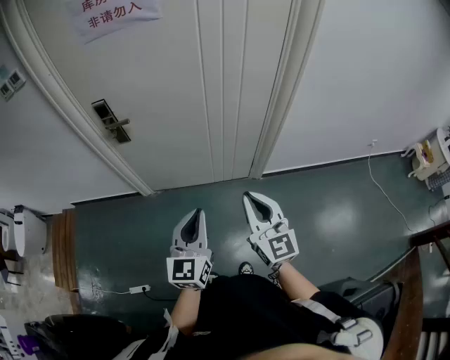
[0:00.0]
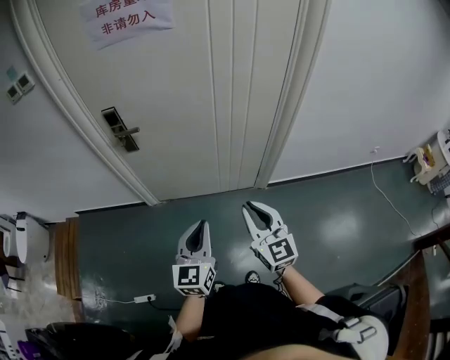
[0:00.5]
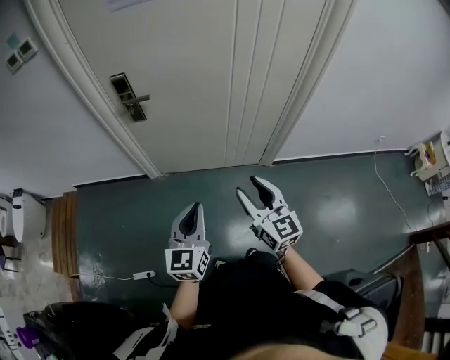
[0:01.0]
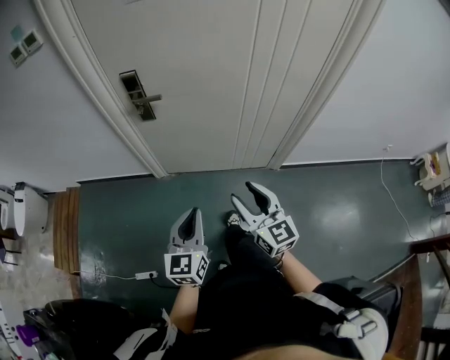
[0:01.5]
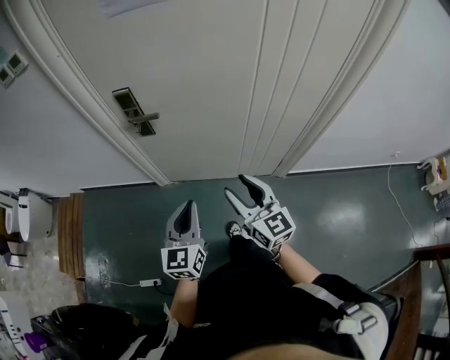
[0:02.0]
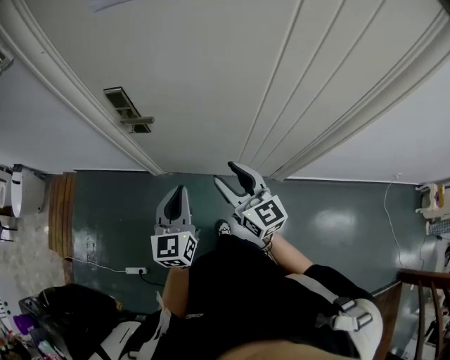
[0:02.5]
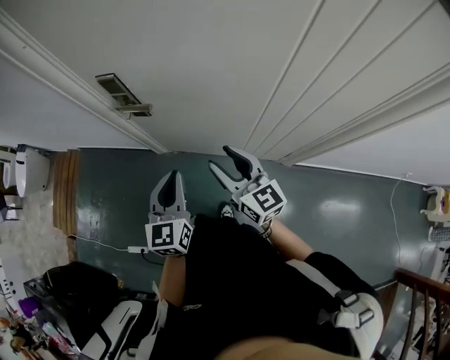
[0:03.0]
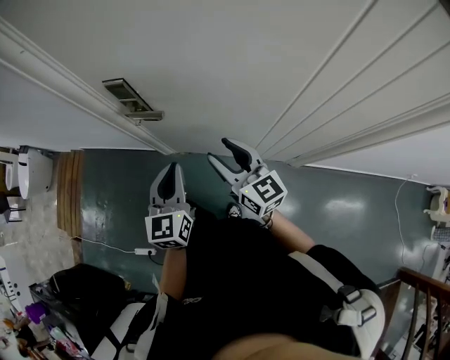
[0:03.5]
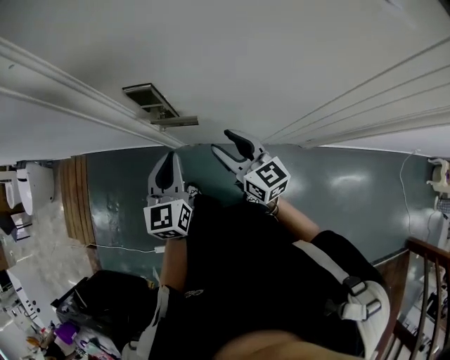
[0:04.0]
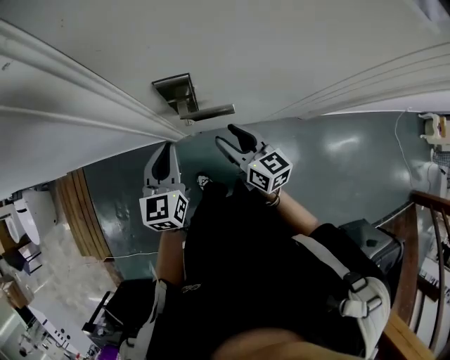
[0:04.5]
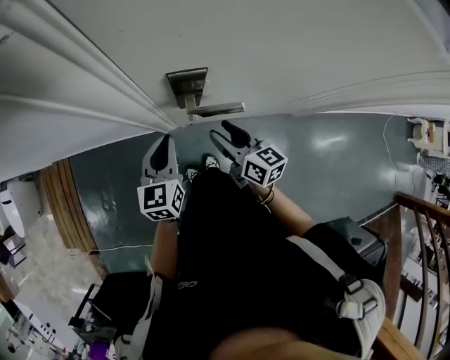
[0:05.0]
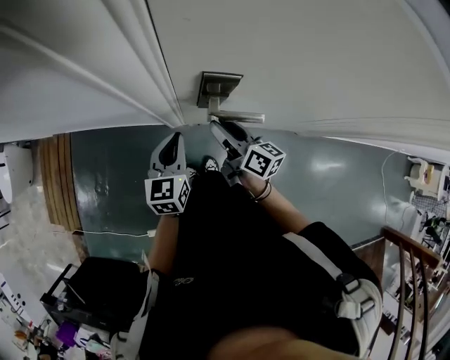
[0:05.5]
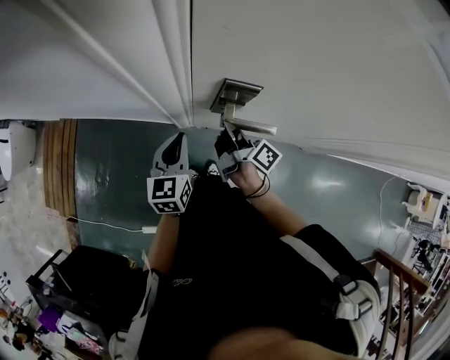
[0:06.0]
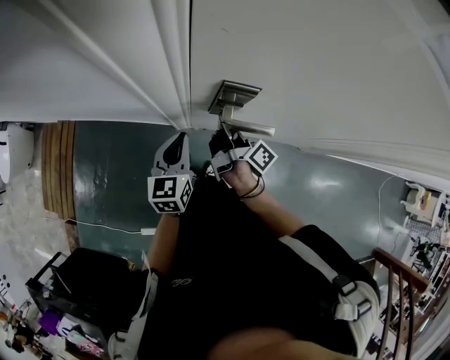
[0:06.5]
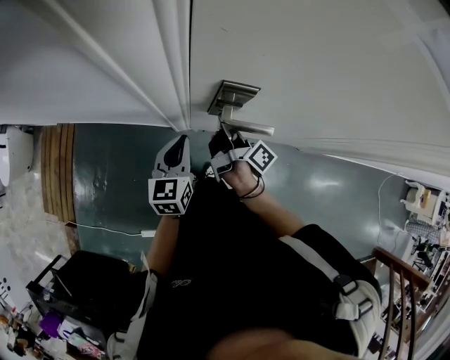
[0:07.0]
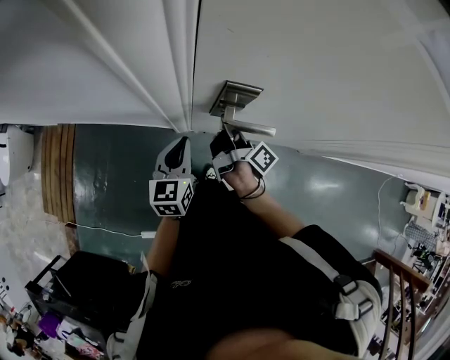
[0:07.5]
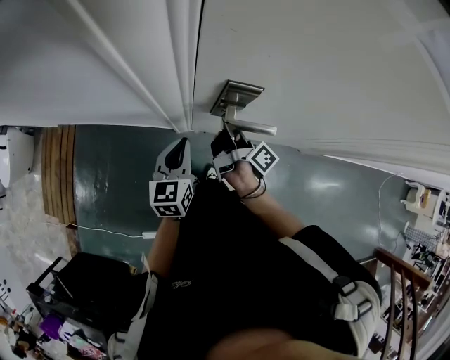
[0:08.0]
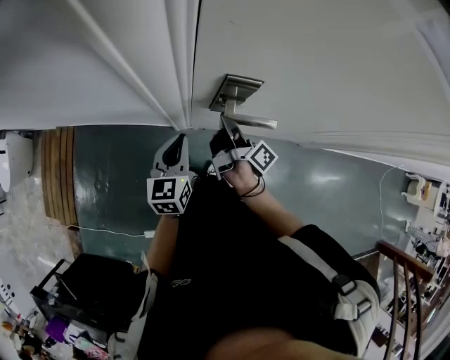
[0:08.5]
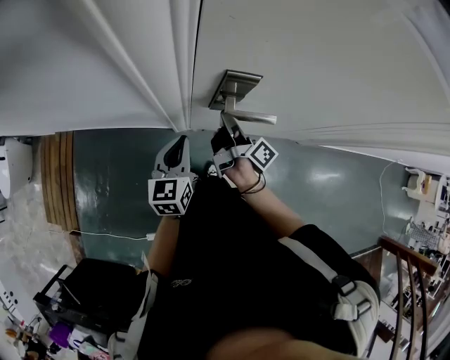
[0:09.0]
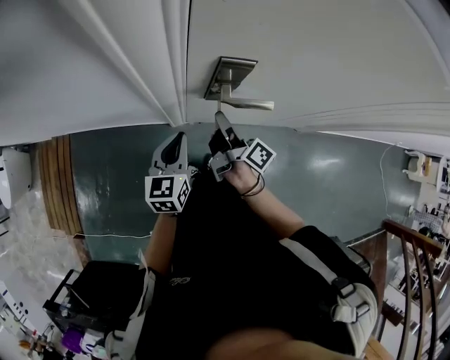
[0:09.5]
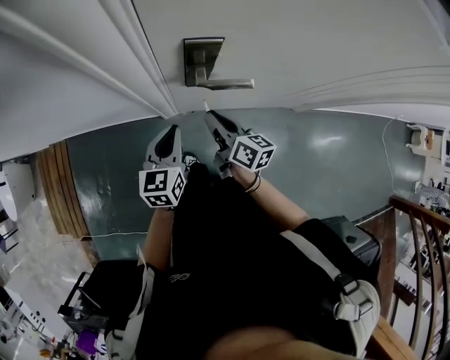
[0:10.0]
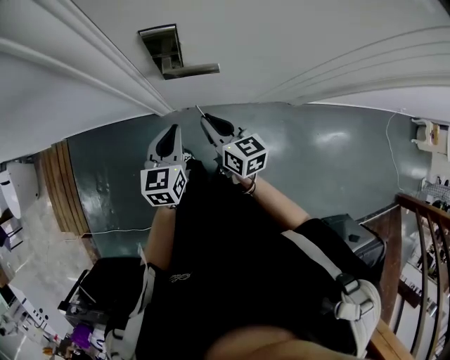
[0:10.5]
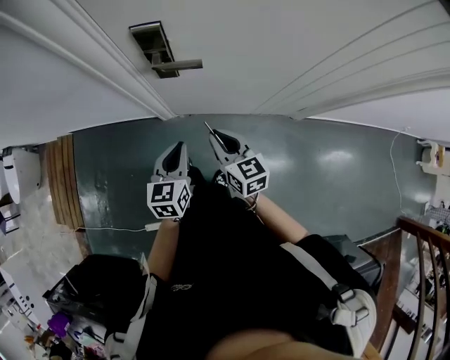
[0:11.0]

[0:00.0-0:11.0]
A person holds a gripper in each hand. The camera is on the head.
0:00.0 to 0:02.0: The right gripper moves forward and to the left, approximately 25 cm, and opens its fingers. The left gripper heads to the left and forward, covering some 20 cm.
0:02.0 to 0:03.5: Both grippers travel together forward, some 20 cm.
0:03.5 to 0:05.5: The grippers both shift to the left, forward and downward by approximately 30 cm. The right gripper changes its angle by approximately 40 degrees.
0:05.5 to 0:07.5: The right gripper swivels roughly 40 degrees, and closes its fingers.
0:07.5 to 0:09.0: There are only small adjustments of the grippers.
0:09.0 to 0:11.0: Both grippers move backward and to the right, roughly 20 cm. The right gripper rolls counterclockwise, seen from behind, by some 70 degrees.

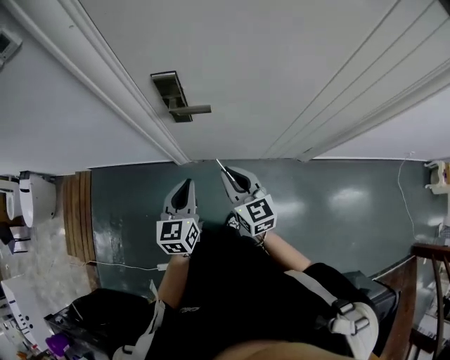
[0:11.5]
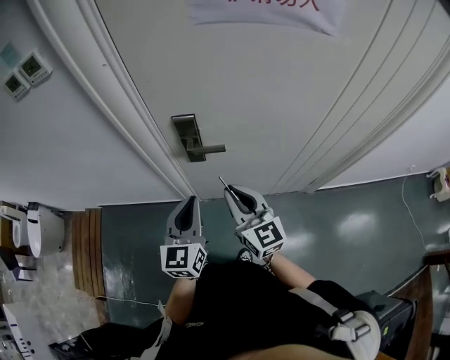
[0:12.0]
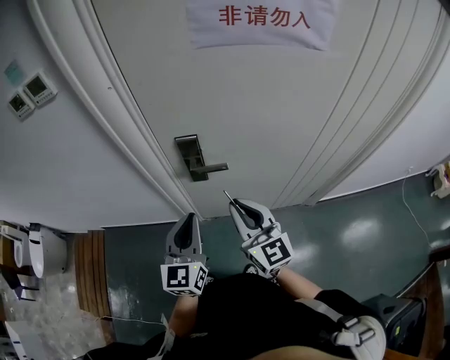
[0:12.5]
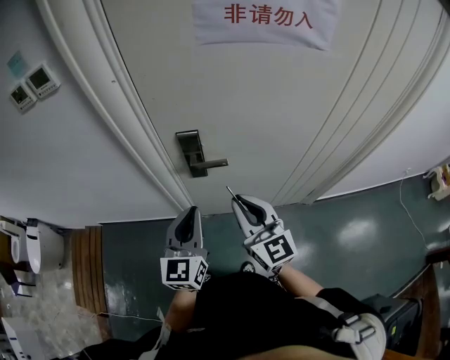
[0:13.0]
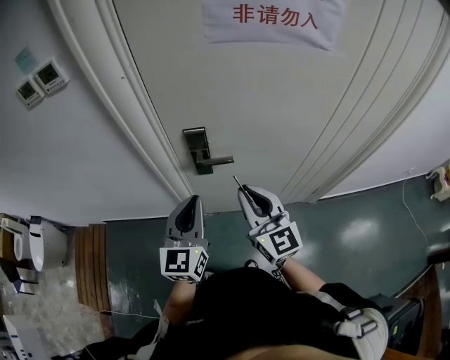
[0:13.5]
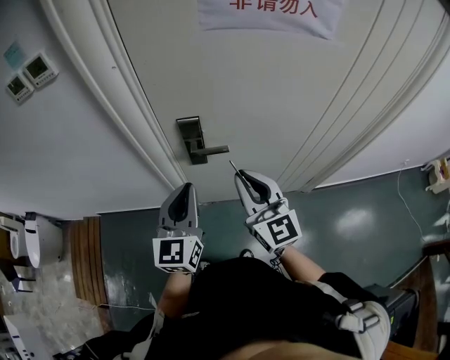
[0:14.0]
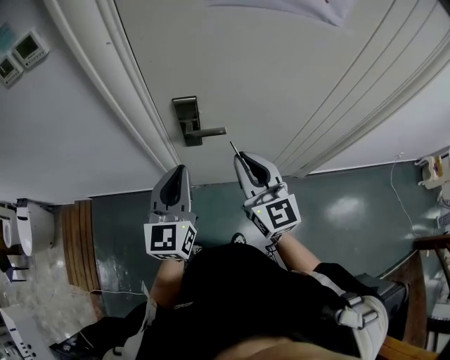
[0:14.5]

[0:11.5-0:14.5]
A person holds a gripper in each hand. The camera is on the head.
0:11.5 to 0:13.0: The grippers both shift upward by about 15 cm.
0:13.0 to 0:14.5: The grippers move only a little.

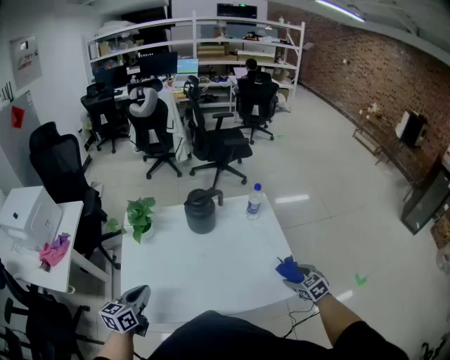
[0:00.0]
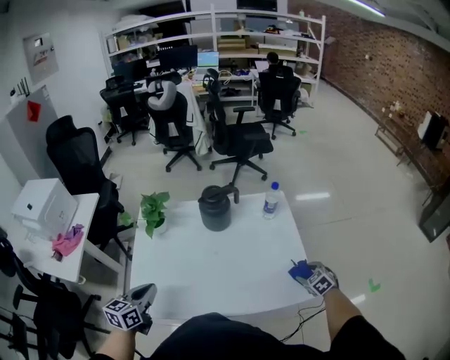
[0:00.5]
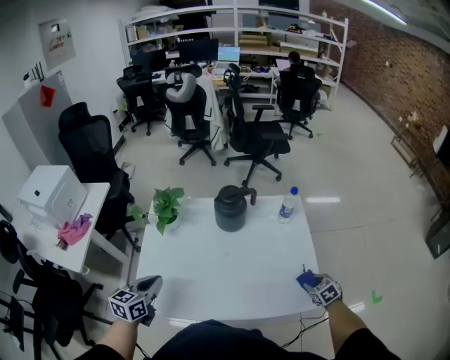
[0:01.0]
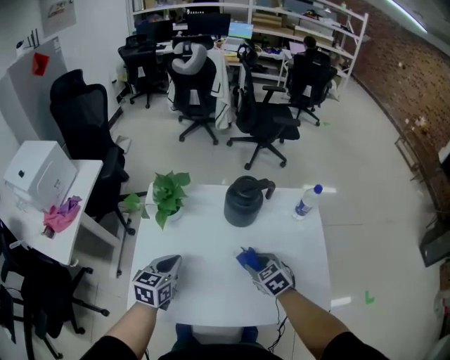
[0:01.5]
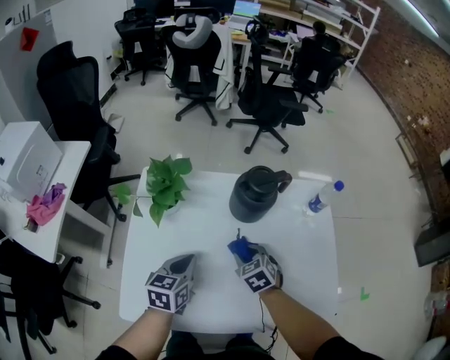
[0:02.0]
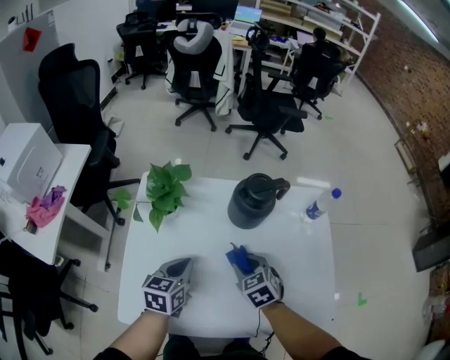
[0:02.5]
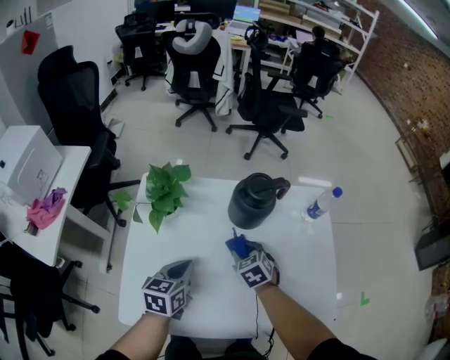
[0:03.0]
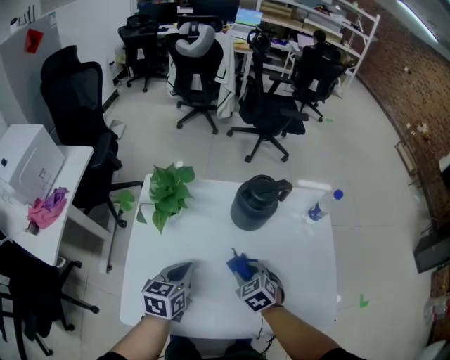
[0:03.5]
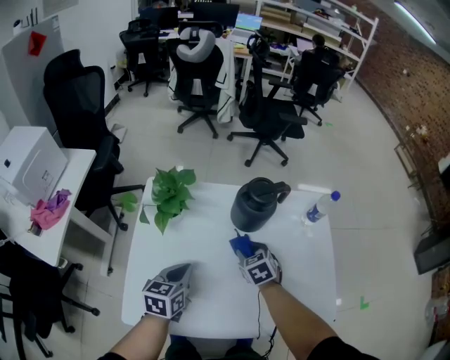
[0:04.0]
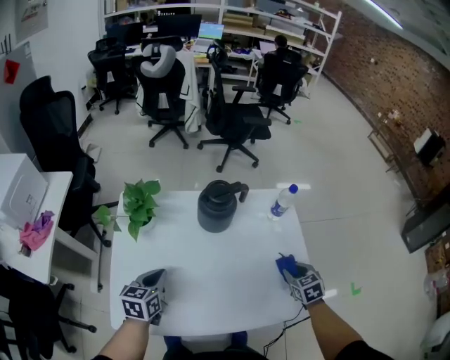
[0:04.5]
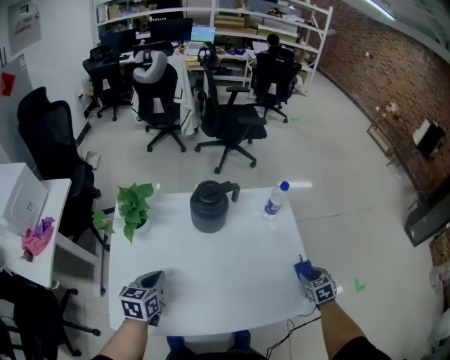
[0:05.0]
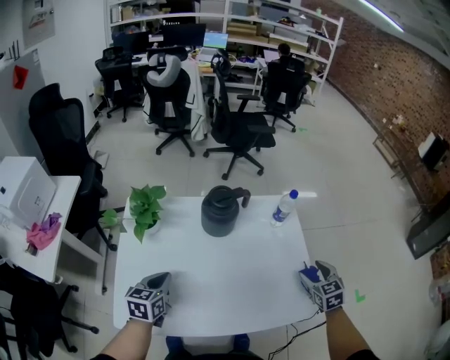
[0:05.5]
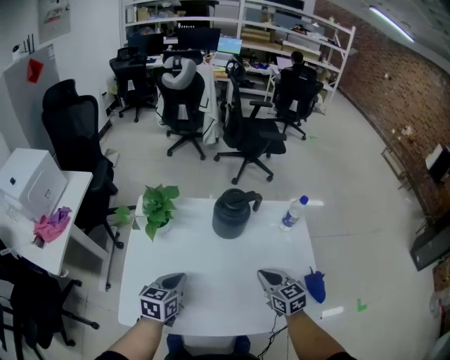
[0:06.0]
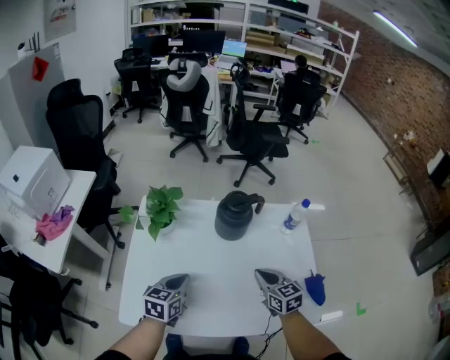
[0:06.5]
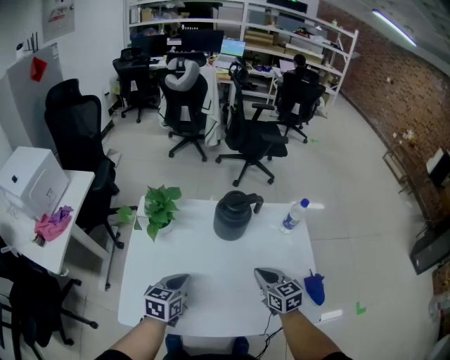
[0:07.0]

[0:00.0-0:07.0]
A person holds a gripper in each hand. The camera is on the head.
0:00.0 to 0:02.0: The left gripper shifts some 20 cm forward and downward. Meanwhile the right gripper is displaced to the left and forward by roughly 40 cm, and closes up.
0:02.0 to 0:03.5: The grippers make only small movements.
0:03.5 to 0:05.0: The right gripper moves to the right, about 40 cm, and turns by approximately 30 degrees.
0:05.0 to 0:07.0: The right gripper is displaced to the left by about 30 cm, rotates approximately 40 degrees, and closes up.

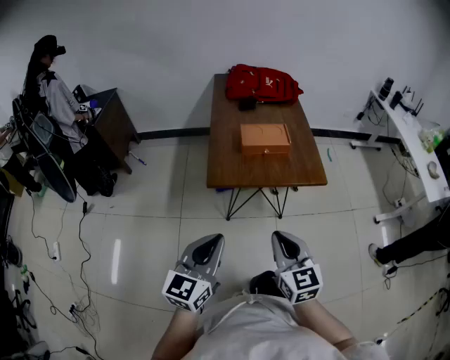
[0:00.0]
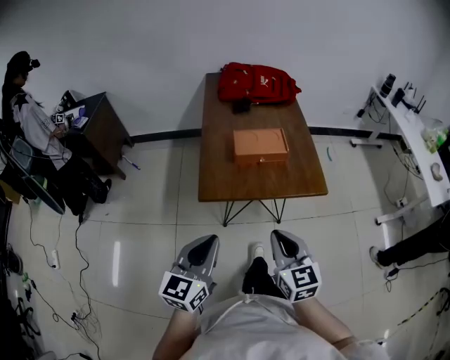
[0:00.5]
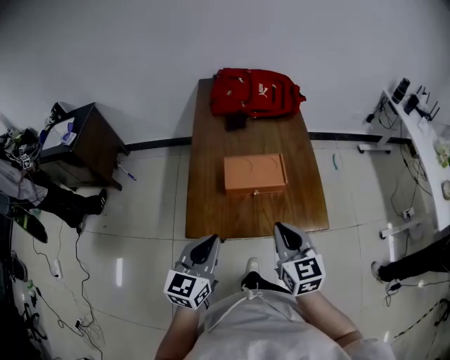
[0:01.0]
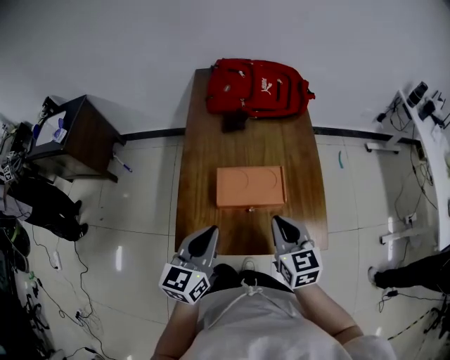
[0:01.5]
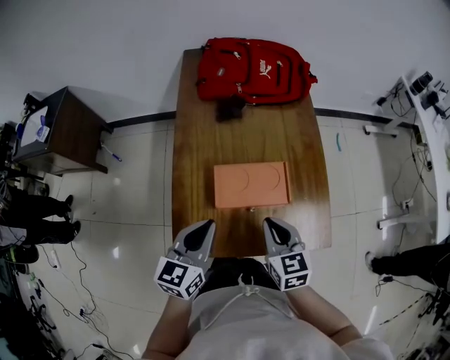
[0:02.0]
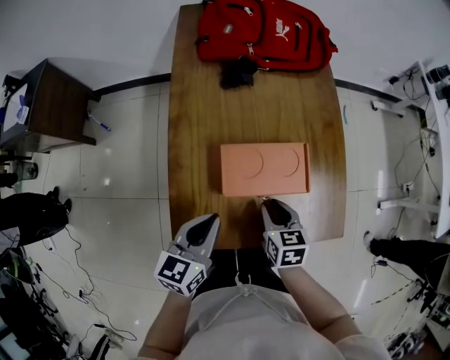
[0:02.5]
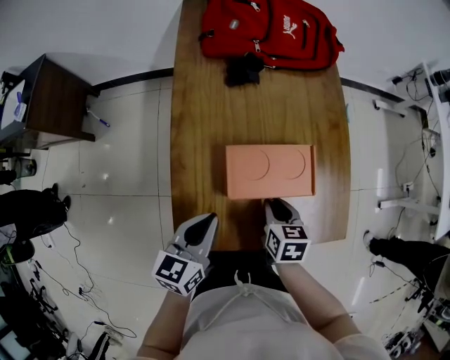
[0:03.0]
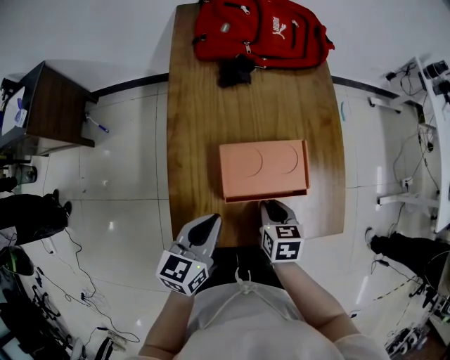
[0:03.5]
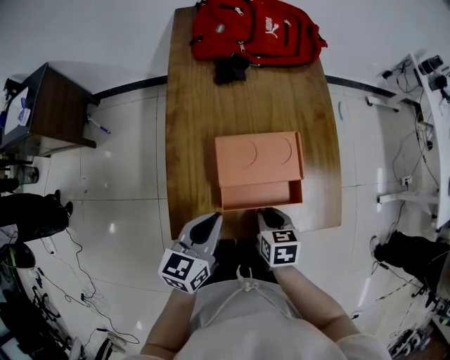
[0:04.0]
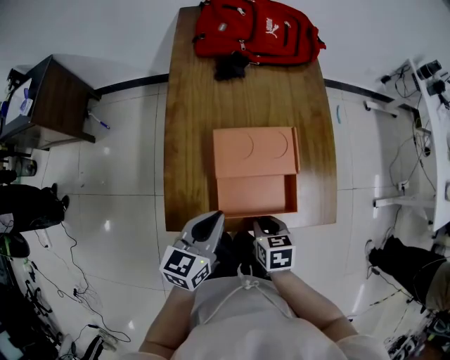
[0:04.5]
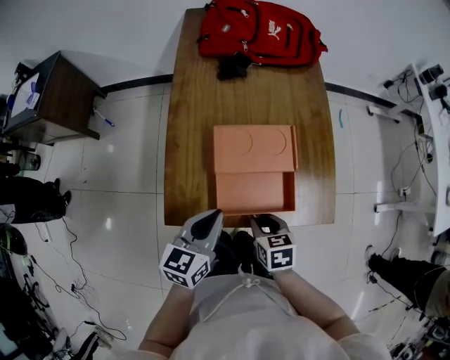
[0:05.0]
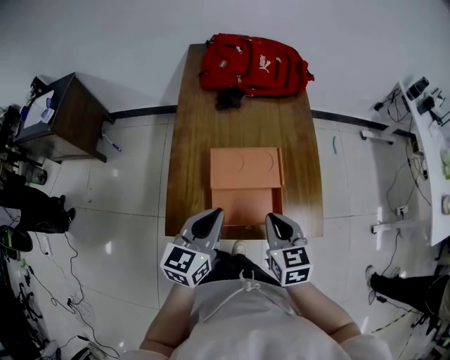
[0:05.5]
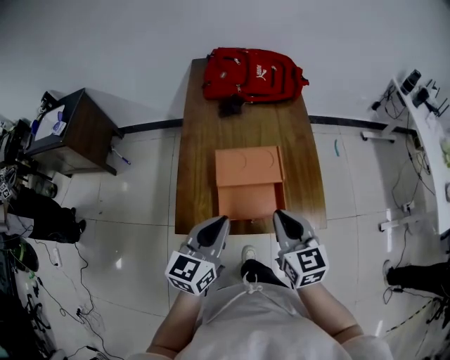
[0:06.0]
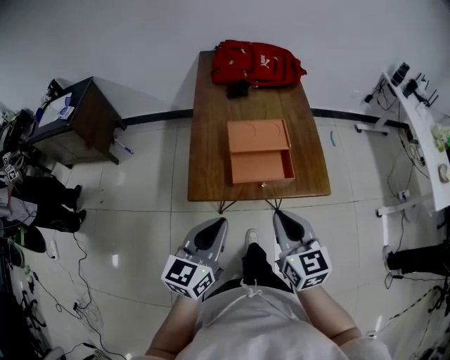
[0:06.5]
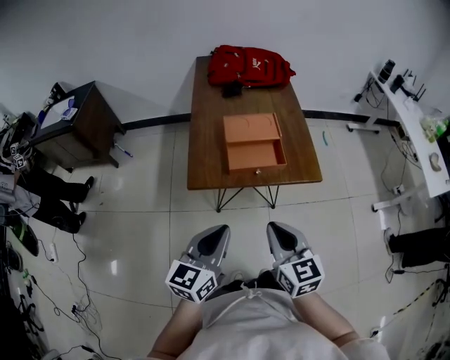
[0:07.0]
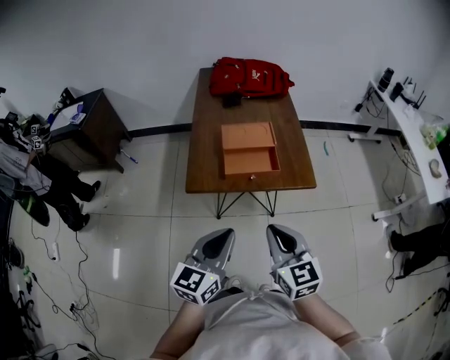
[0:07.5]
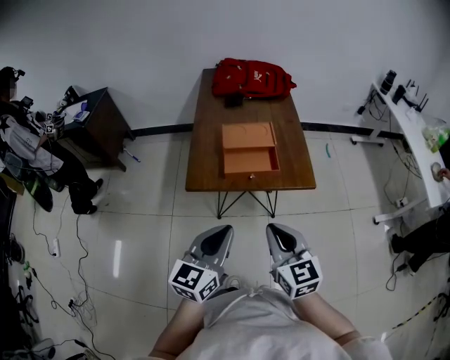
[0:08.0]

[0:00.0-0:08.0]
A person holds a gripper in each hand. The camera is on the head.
0:00.0 to 0:02.0: The pair of grippers is taken forward, some 40 cm.
0:02.0 to 0:04.0: The left gripper shifts about 5 cm downward; the right gripper goes approximately 15 cm downward, and rotates approximately 30 degrees.
0:04.0 to 0:06.0: The right gripper heads upward, covering roughly 20 cm, and tilts its fingers about 30 degrees upward. The left gripper shifts about 15 cm upward, backward and to the right.
0:06.0 to 0:08.0: The grippers both shift backward by some 25 cm.
